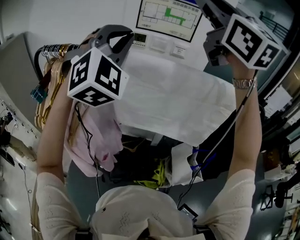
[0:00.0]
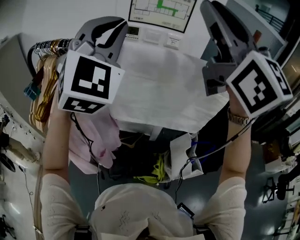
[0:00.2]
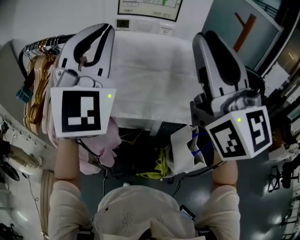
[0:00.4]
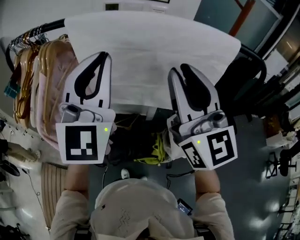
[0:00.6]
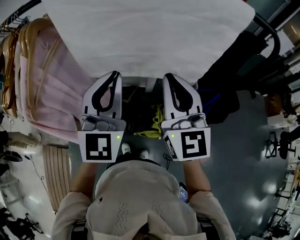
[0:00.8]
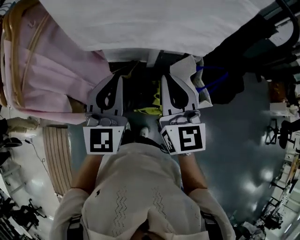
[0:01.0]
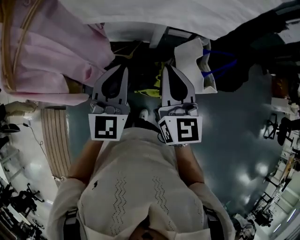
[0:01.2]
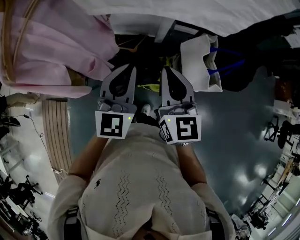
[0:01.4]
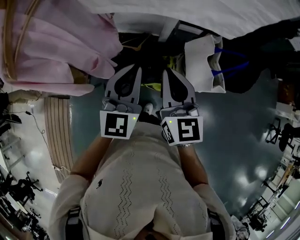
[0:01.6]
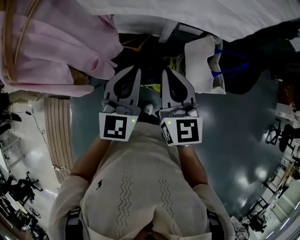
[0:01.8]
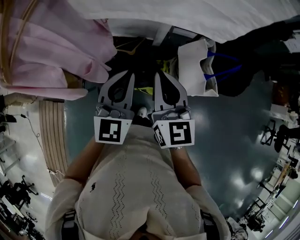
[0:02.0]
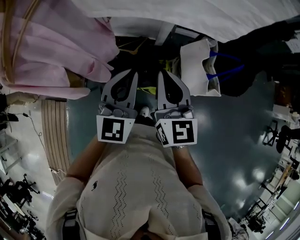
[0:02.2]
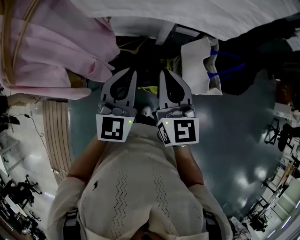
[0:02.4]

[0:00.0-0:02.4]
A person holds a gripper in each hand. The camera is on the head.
0:00.0 to 0:01.2: The right gripper goes approximately 60 cm downward, rotates about 40 degrees, and closes its fingers. The left gripper heads downward and backward, covering some 40 cm, and twists roughly 60 degrees counterclockwise, seen from behind.
0:01.2 to 0:02.4: The grippers move only a little.

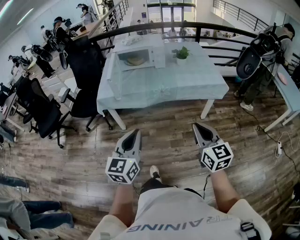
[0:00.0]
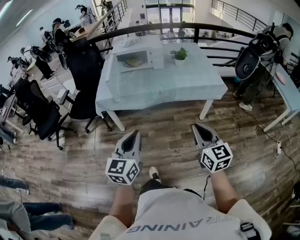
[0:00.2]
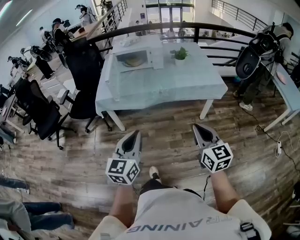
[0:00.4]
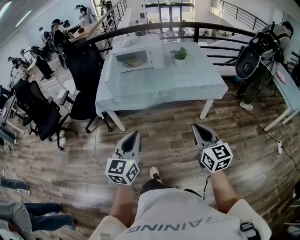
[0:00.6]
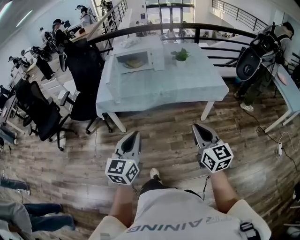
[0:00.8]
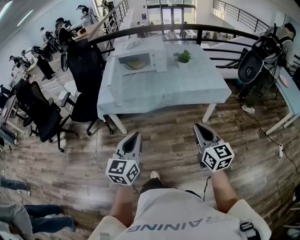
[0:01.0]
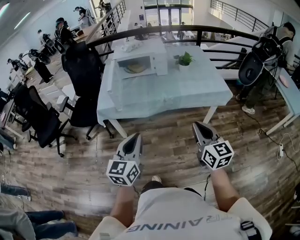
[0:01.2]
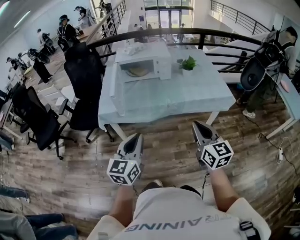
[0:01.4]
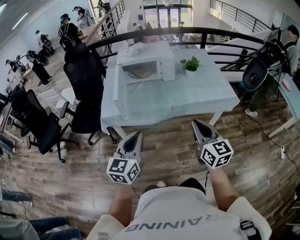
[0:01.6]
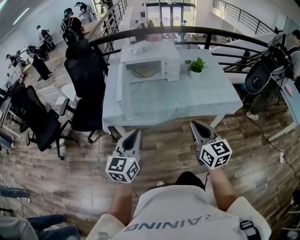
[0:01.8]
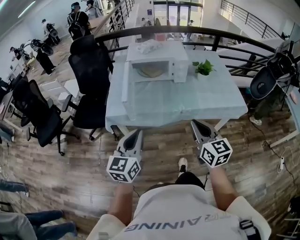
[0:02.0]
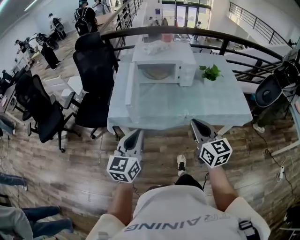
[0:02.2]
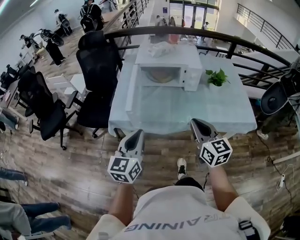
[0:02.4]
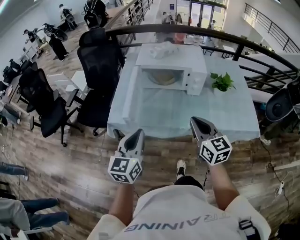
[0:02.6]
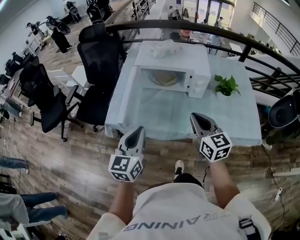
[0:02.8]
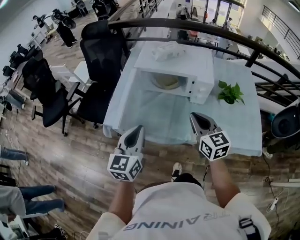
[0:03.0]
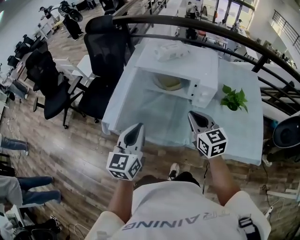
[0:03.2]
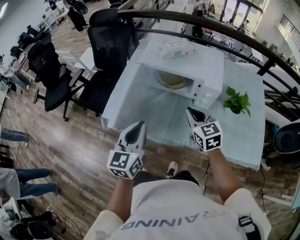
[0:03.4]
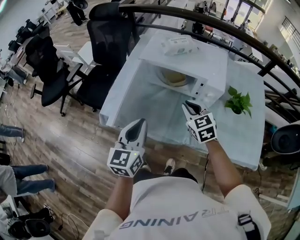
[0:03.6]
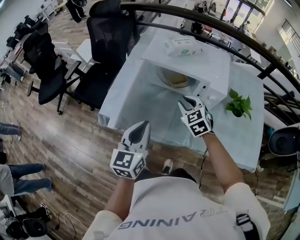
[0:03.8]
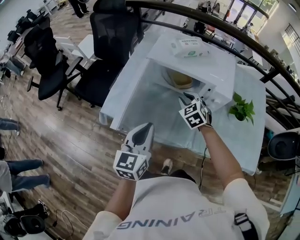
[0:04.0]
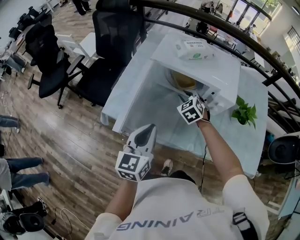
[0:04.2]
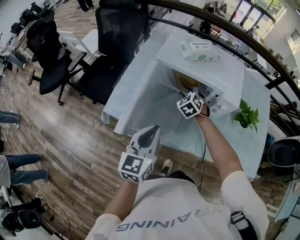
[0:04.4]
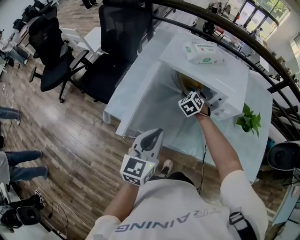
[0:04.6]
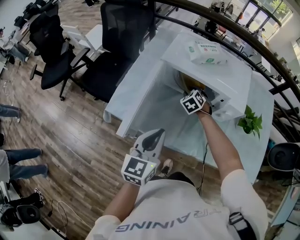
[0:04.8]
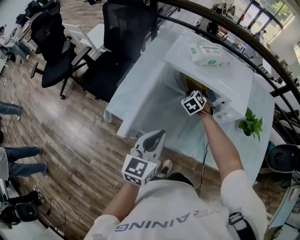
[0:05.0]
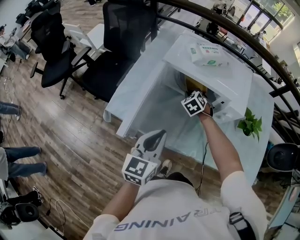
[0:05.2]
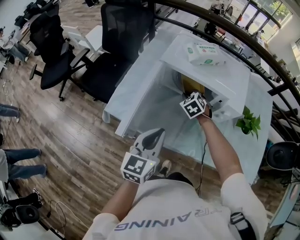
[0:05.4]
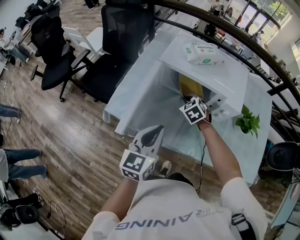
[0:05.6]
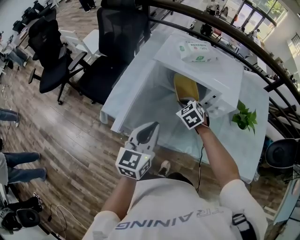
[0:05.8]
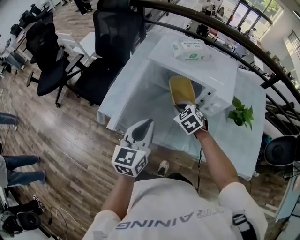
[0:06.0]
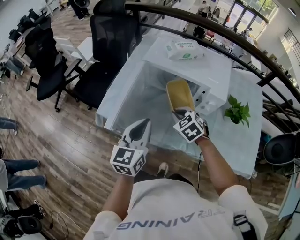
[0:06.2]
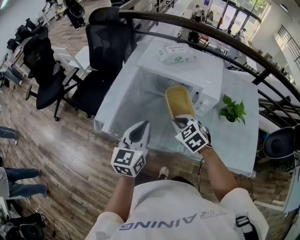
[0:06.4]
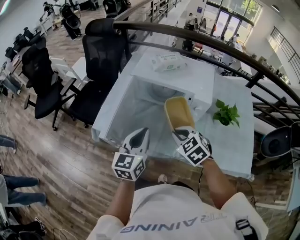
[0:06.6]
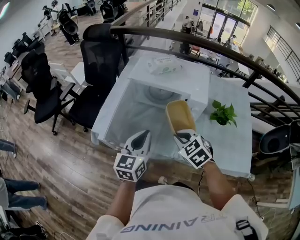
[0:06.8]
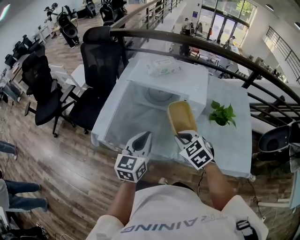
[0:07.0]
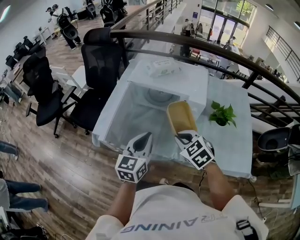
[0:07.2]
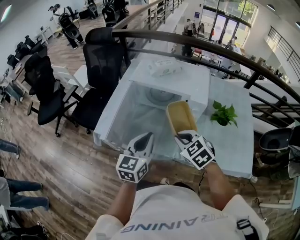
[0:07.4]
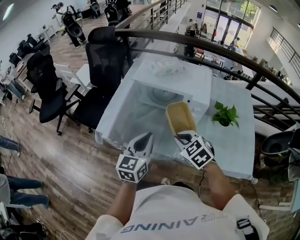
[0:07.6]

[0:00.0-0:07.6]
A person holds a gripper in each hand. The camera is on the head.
0:00.0 to 0:01.6: The grippers both shift forward and to the left by roughly 20 cm.
0:01.6 to 0:03.0: Both grippers move forward, roughly 35 cm. The right gripper rotates about 20 degrees; the left gripper swivels some 20 degrees.
0:03.0 to 0:04.6: The left gripper heads forward and downward, covering about 10 cm. The right gripper heads forward and downward, covering approximately 35 cm, tilts its fingers approximately 30 degrees downward, and opens its fingers.
0:04.6 to 0:06.0: The right gripper moves backward and upward, some 15 cm, and closes.
0:06.0 to 0:07.6: The left gripper shifts about 5 cm to the right. The right gripper travels backward and upward by some 20 cm.

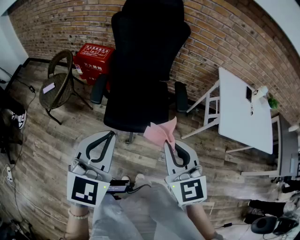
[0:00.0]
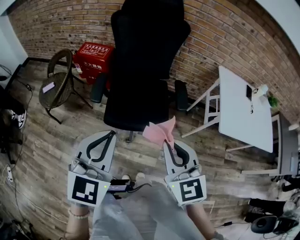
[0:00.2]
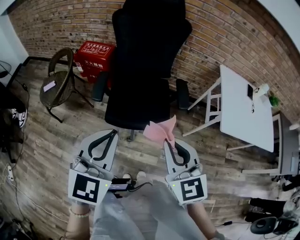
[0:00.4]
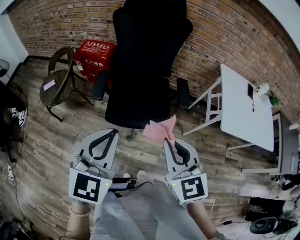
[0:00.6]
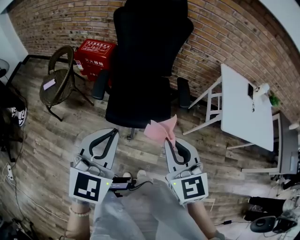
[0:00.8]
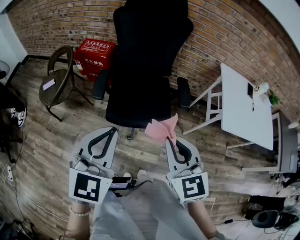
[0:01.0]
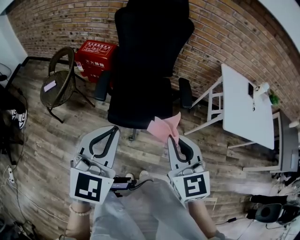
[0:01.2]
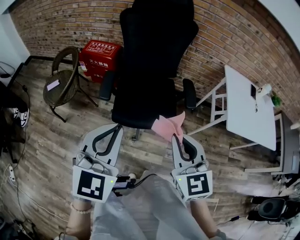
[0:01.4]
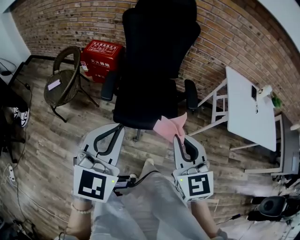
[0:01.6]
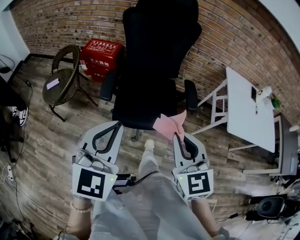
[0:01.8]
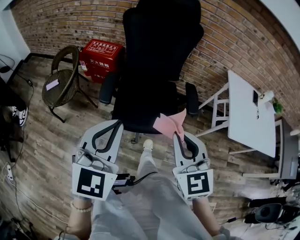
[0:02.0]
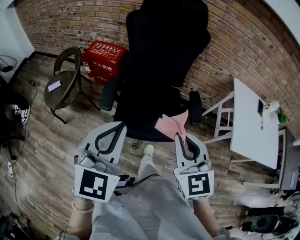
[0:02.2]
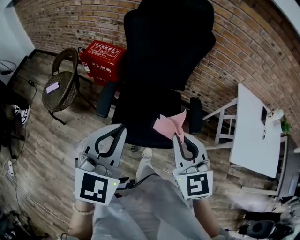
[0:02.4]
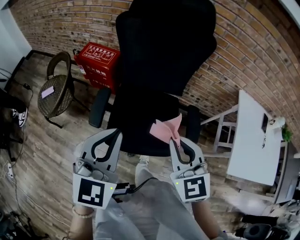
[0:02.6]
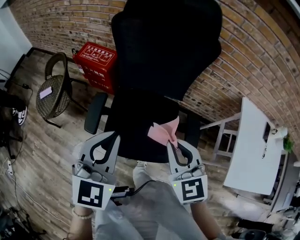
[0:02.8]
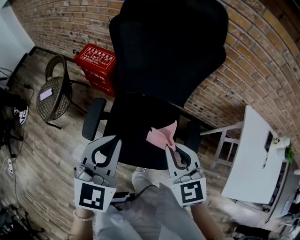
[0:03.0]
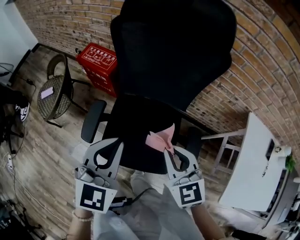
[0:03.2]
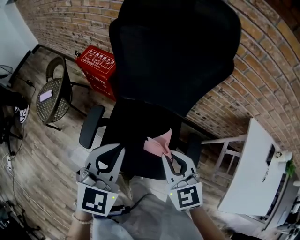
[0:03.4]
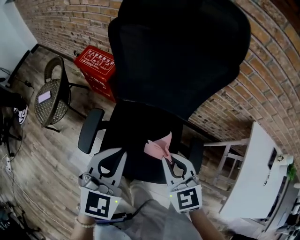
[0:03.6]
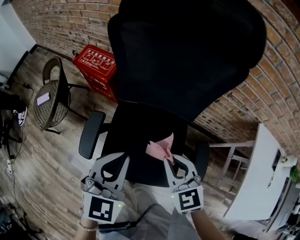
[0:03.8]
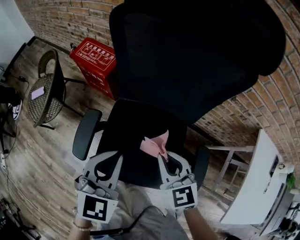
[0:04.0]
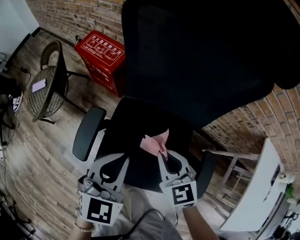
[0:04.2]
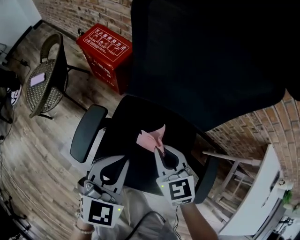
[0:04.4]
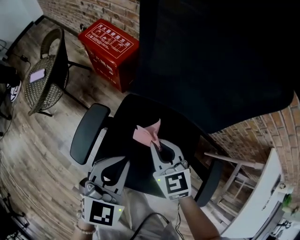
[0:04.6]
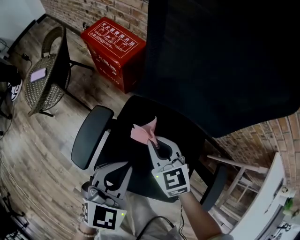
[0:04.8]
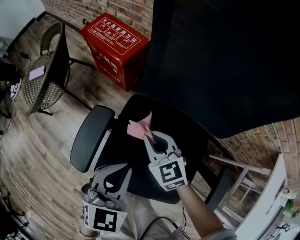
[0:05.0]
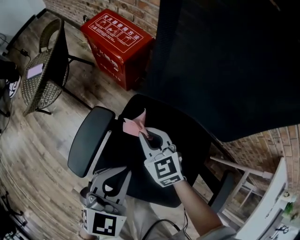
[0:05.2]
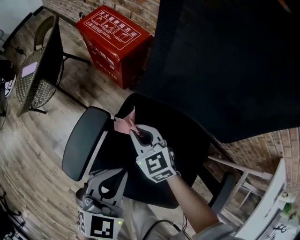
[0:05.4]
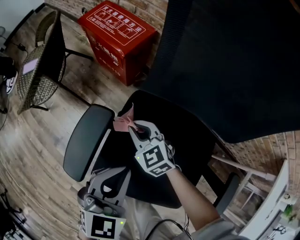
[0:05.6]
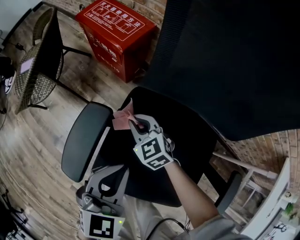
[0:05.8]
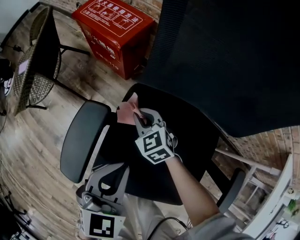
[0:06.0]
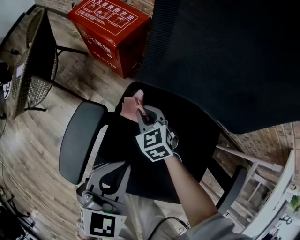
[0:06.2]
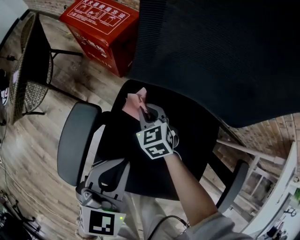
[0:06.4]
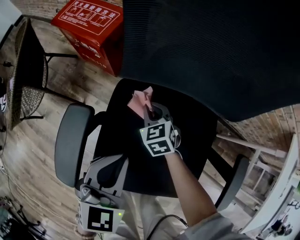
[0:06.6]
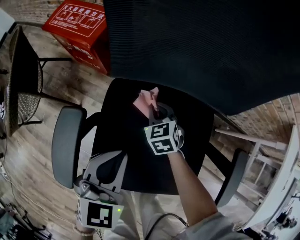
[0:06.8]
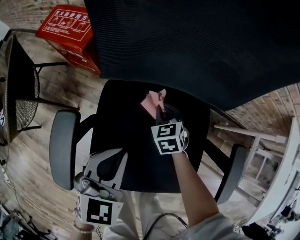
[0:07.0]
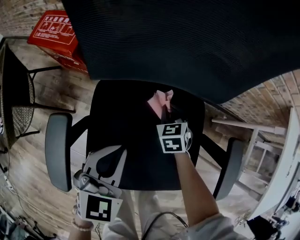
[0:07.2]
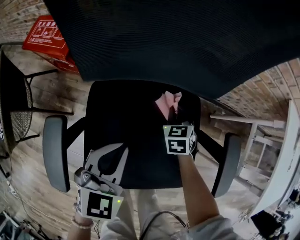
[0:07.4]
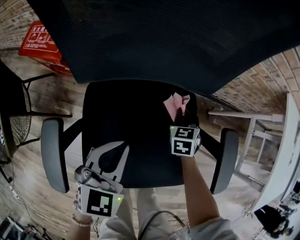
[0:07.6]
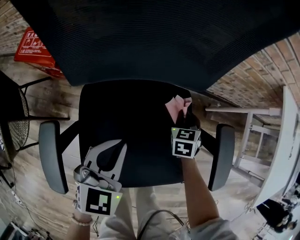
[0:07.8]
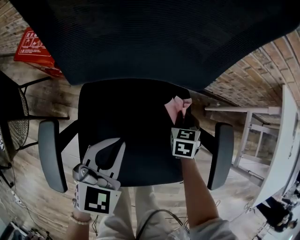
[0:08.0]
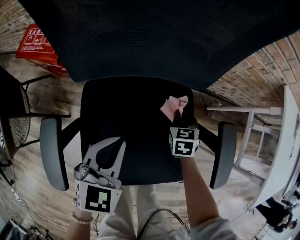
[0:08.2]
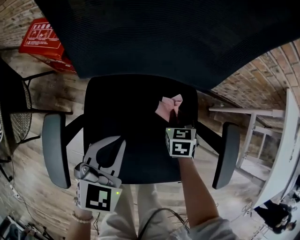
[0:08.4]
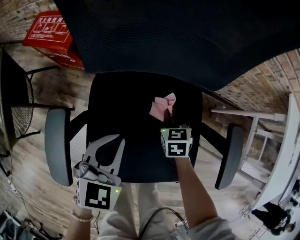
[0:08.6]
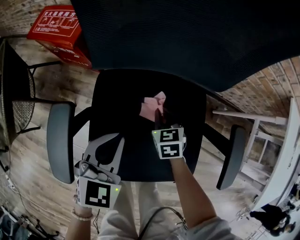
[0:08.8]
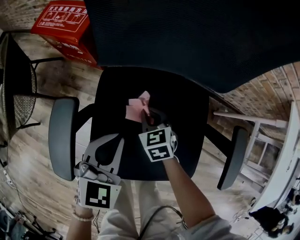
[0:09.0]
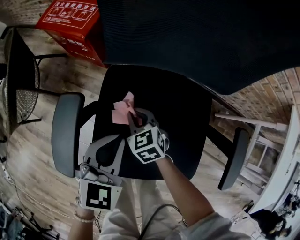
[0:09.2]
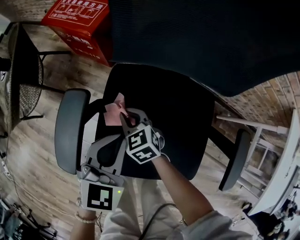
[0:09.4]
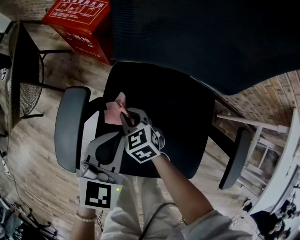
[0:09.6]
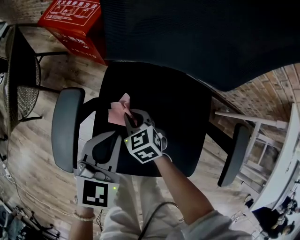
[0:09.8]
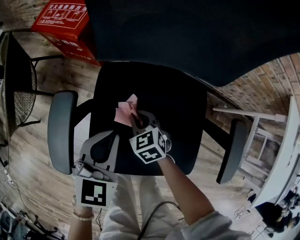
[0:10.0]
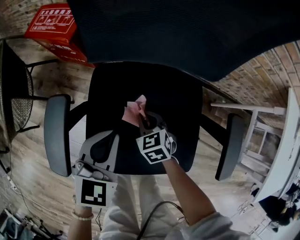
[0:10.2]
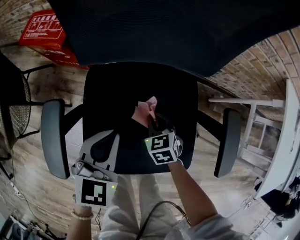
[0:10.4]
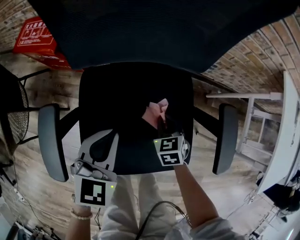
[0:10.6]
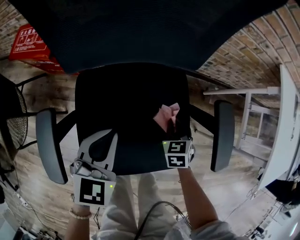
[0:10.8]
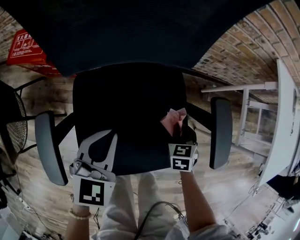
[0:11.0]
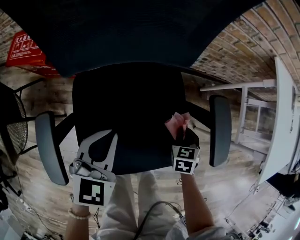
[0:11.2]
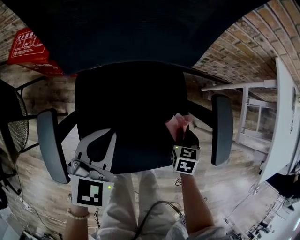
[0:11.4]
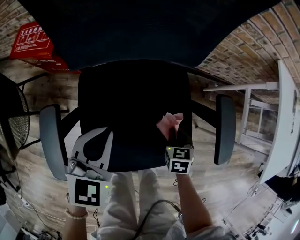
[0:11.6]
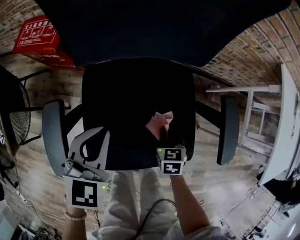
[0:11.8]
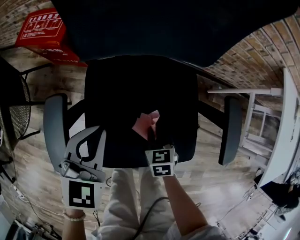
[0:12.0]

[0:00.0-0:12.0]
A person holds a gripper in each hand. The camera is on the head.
0:00.0 to 0:01.6: The left gripper heads to the left, covering some 5 cm.
0:01.6 to 0:03.0: The two grippers go approximately 40 cm forward.
0:03.0 to 0:04.4: Both grippers travel together downward and forward, some 25 cm.
0:04.4 to 0:06.0: The right gripper heads downward, forward and to the left, covering approximately 30 cm. Meanwhile the left gripper goes some 15 cm downward.
0:06.0 to 0:07.6: The right gripper shifts by roughly 35 cm, and turns by roughly 60 degrees. Meanwhile the left gripper changes place by approximately 15 cm, and turns by about 20 degrees.
0:07.6 to 0:09.0: The left gripper ends up about 10 cm from where it was; the right gripper changes place by roughly 20 cm, and rotates approximately 30 degrees.
0:09.0 to 0:10.4: The right gripper travels to the right and backward by roughly 10 cm.

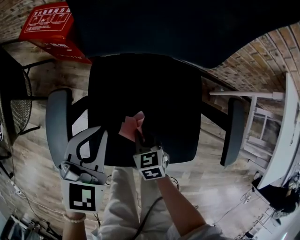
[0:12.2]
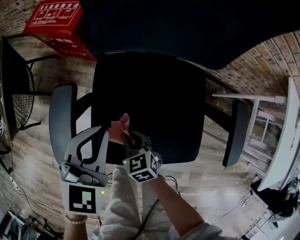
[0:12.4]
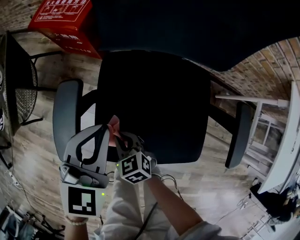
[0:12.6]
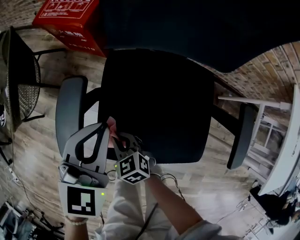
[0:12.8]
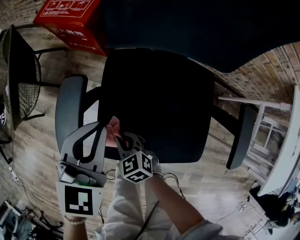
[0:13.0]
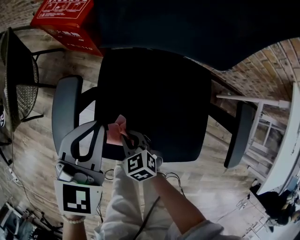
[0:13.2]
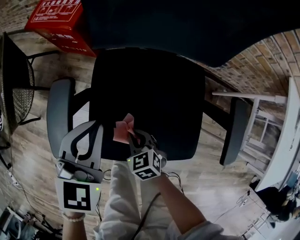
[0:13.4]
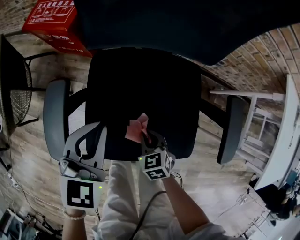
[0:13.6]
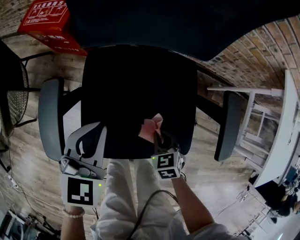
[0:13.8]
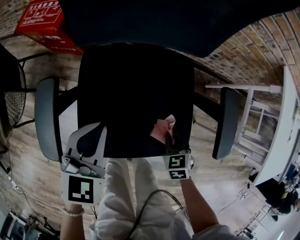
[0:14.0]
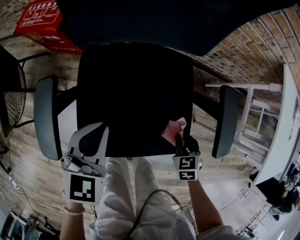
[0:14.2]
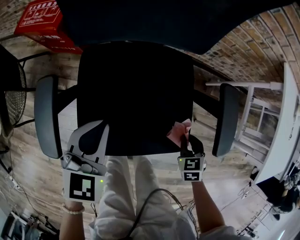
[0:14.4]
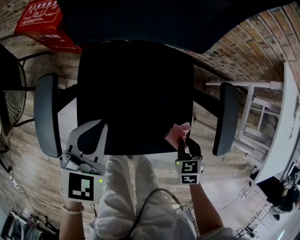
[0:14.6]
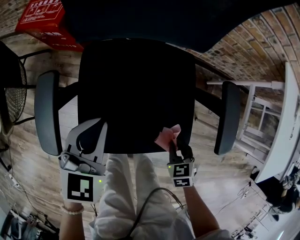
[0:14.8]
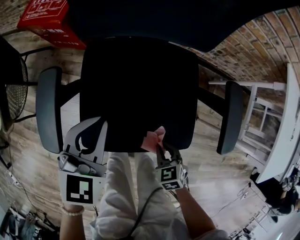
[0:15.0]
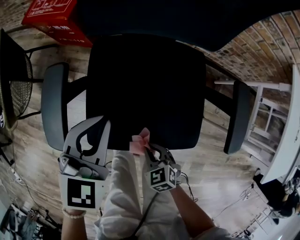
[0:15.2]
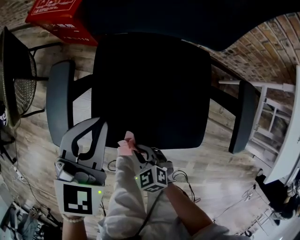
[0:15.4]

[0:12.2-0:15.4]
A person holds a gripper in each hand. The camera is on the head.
0:12.2 to 0:13.8: The right gripper travels to the right and backward by roughly 10 cm.
0:13.8 to 0:15.4: The right gripper ends up some 20 cm from where it was, and turns by roughly 30 degrees.
